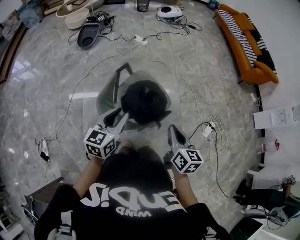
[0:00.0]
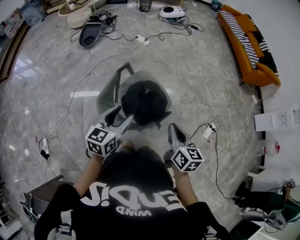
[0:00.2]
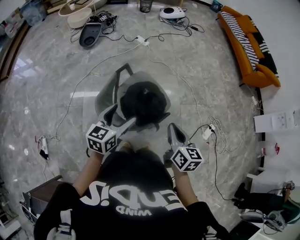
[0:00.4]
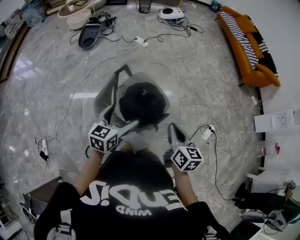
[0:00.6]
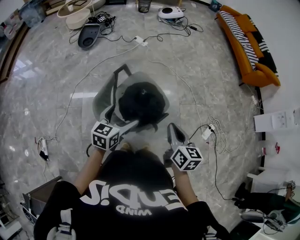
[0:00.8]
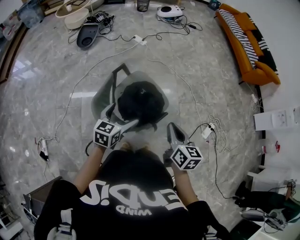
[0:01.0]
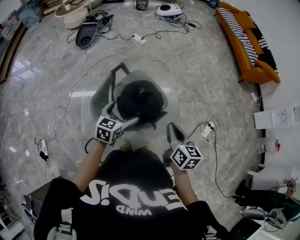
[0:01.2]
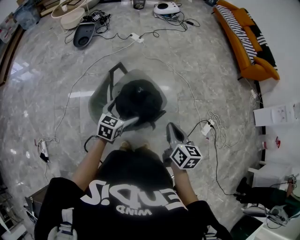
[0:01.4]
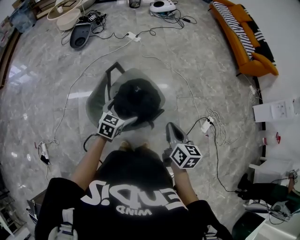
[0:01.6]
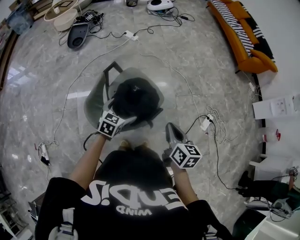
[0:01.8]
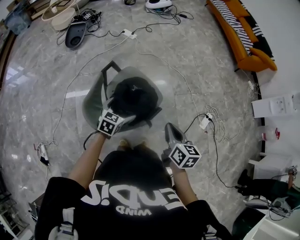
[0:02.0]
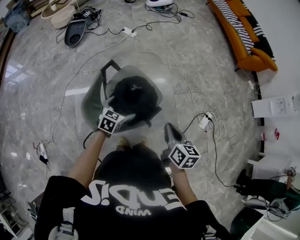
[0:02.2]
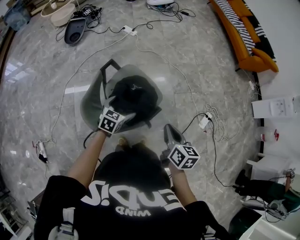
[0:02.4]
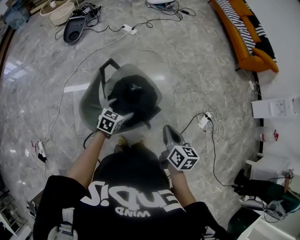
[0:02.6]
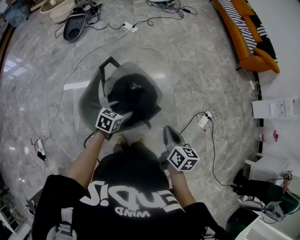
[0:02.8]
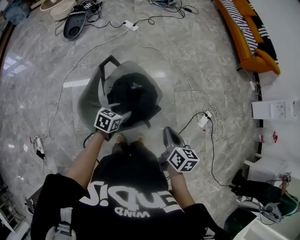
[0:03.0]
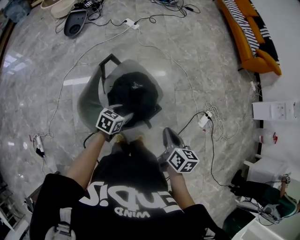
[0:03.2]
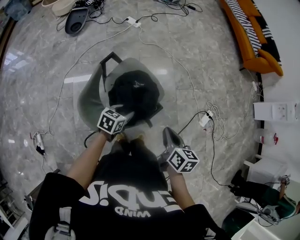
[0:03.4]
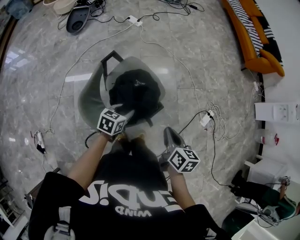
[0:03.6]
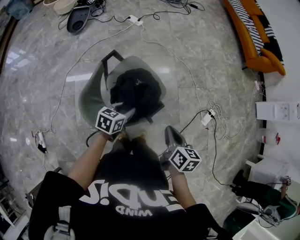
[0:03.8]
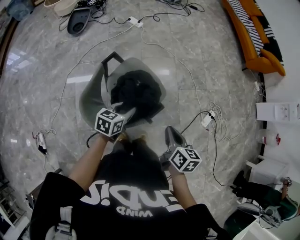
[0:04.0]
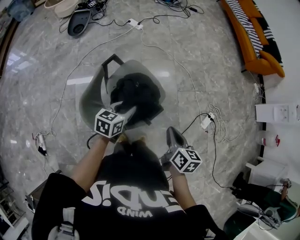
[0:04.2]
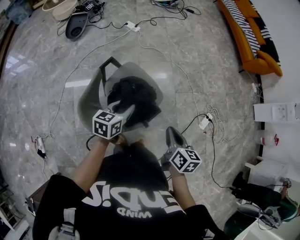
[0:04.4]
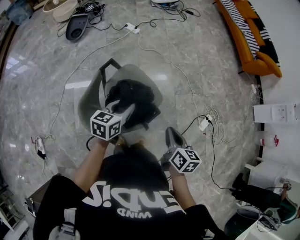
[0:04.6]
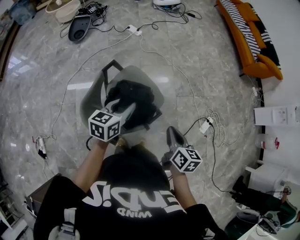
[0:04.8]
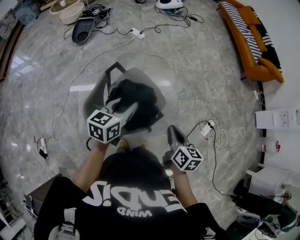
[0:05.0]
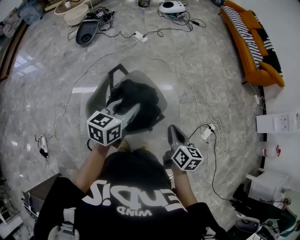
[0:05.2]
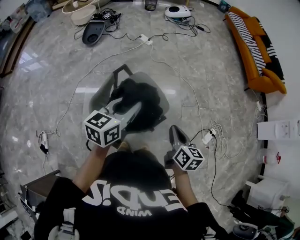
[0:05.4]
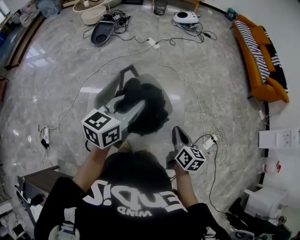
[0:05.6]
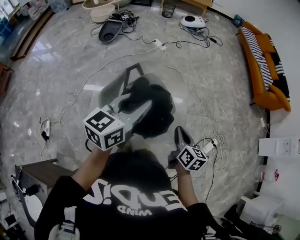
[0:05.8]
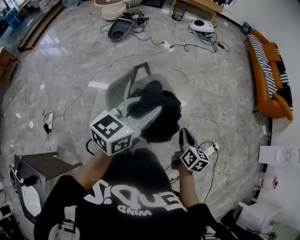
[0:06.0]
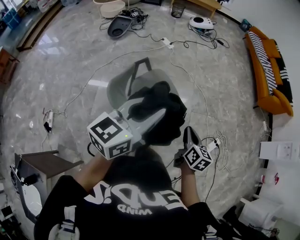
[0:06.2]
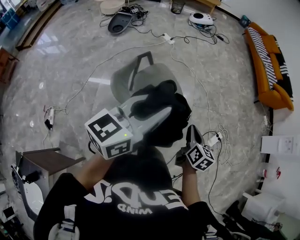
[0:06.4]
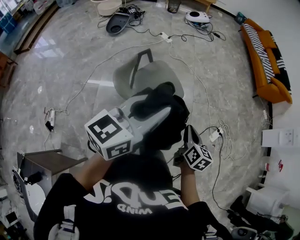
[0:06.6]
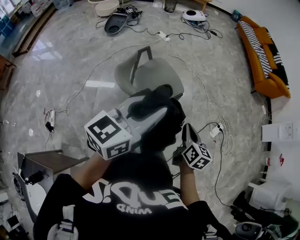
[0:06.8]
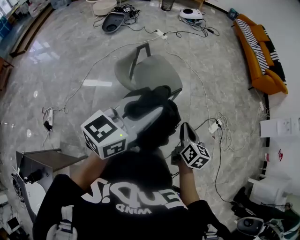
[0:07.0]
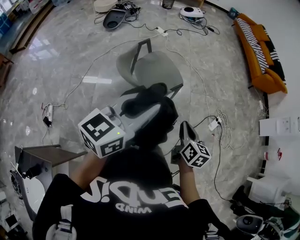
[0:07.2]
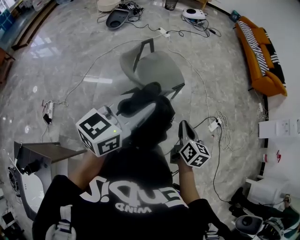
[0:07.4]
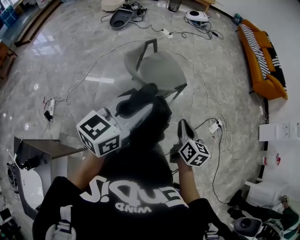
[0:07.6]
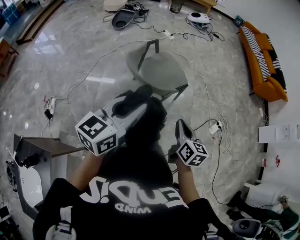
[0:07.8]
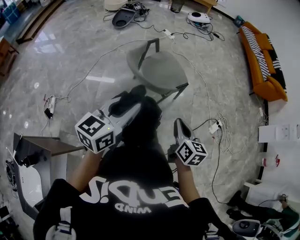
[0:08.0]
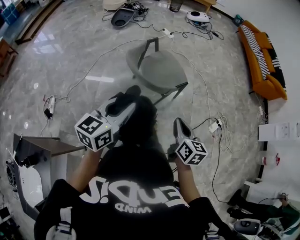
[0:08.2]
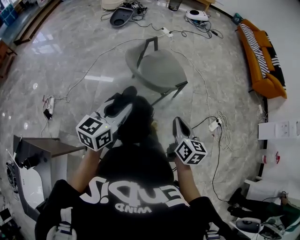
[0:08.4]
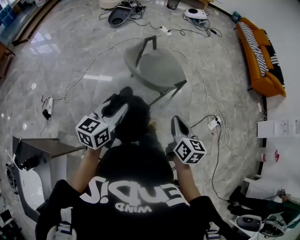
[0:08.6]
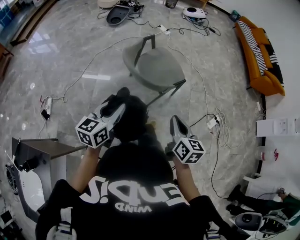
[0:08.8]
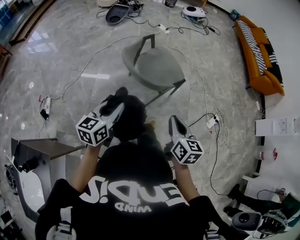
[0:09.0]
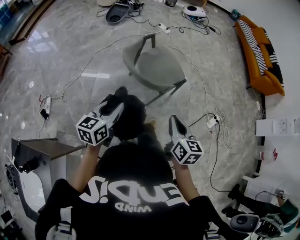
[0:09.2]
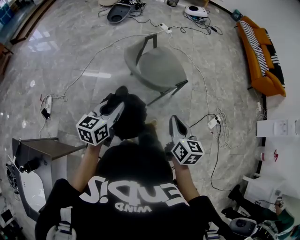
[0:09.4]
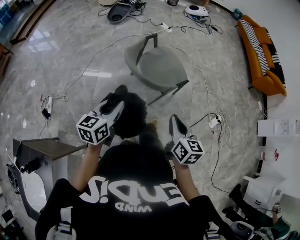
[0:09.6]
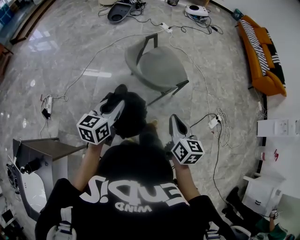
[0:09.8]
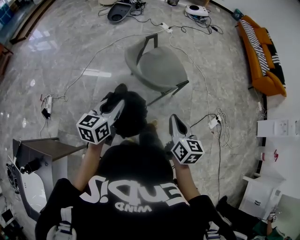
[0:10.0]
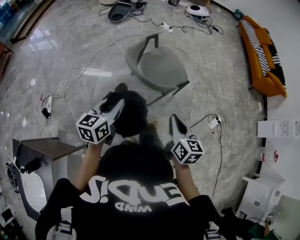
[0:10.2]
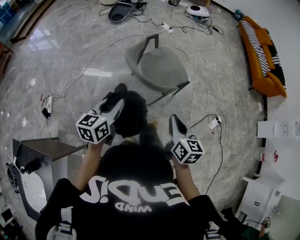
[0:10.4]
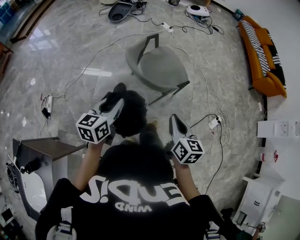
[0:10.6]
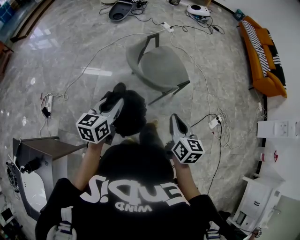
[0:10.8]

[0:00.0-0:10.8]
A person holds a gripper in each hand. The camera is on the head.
0.0 to 1.6 s: The left gripper goes some 15 cm downward, forward and to the right, rotates approximately 20 degrees, and opens. Meanwhile the right gripper travels to the right by about 5 cm.
1.6 to 3.0 s: The grippers both shift downward by roughly 5 cm. The left gripper closes up.
3.0 to 4.6 s: The left gripper shifts roughly 10 cm upward.
4.6 to 6.2 s: The left gripper goes roughly 30 cm upward and backward, and rotates about 30 degrees. Meanwhile the right gripper moves backward, about 10 cm.
6.2 to 7.8 s: The two grippers go roughly 30 cm backward.
7.8 to 9.2 s: The left gripper heads downward and to the left, covering roughly 15 cm.
9.2 to 10.8 s: The grippers stay close to where they were, moving slightly.

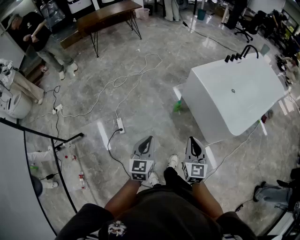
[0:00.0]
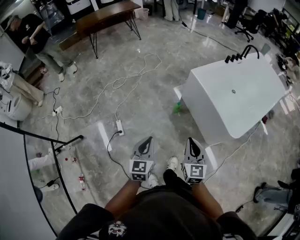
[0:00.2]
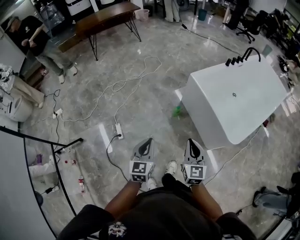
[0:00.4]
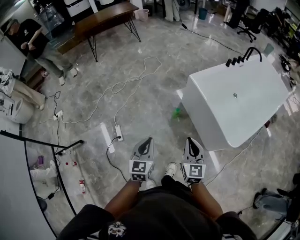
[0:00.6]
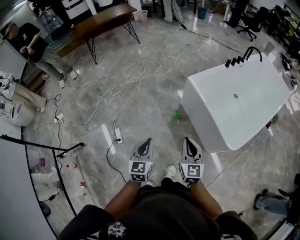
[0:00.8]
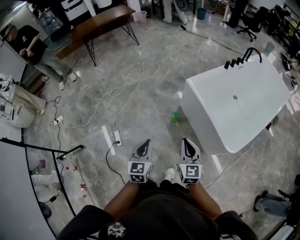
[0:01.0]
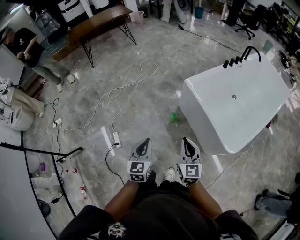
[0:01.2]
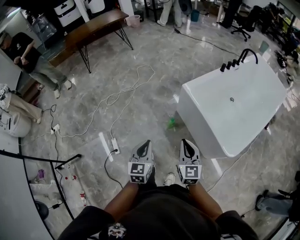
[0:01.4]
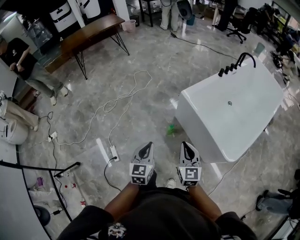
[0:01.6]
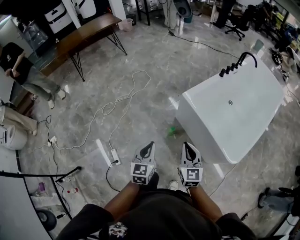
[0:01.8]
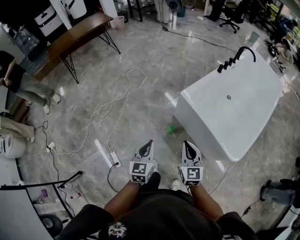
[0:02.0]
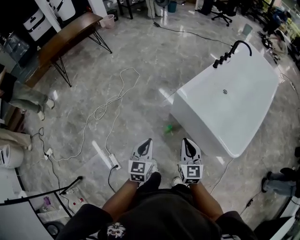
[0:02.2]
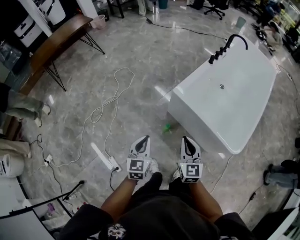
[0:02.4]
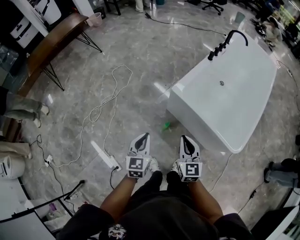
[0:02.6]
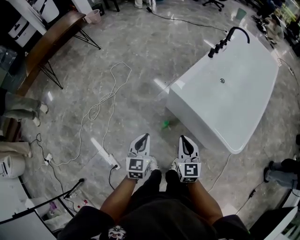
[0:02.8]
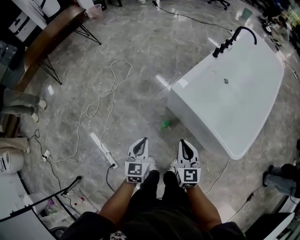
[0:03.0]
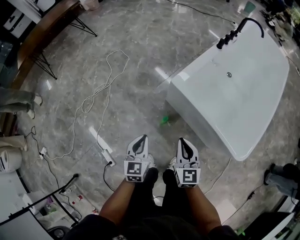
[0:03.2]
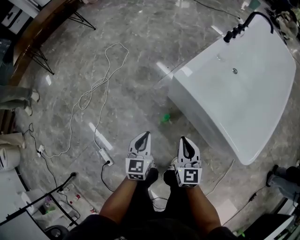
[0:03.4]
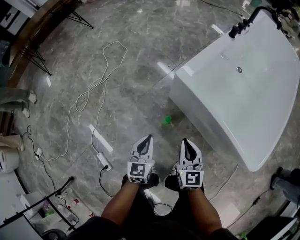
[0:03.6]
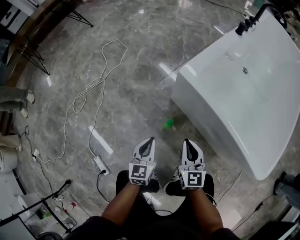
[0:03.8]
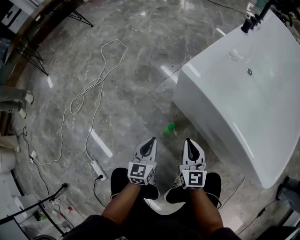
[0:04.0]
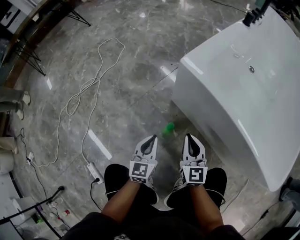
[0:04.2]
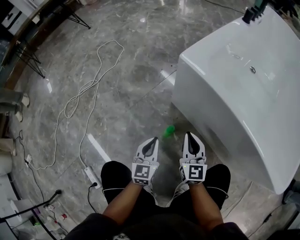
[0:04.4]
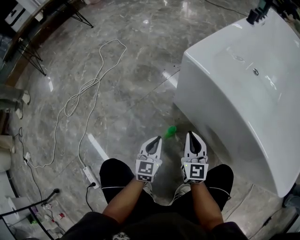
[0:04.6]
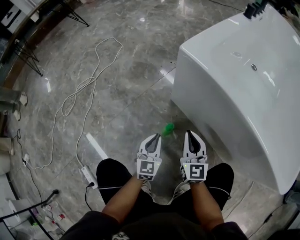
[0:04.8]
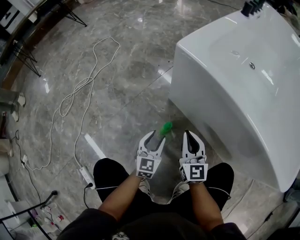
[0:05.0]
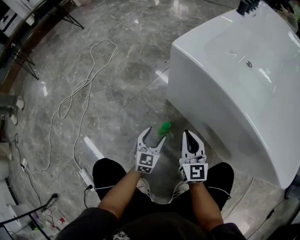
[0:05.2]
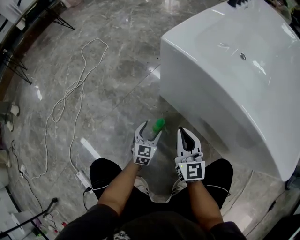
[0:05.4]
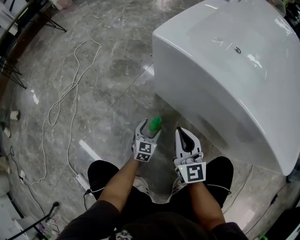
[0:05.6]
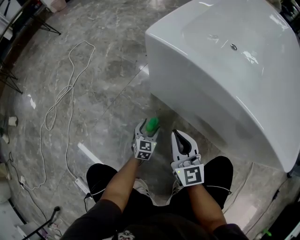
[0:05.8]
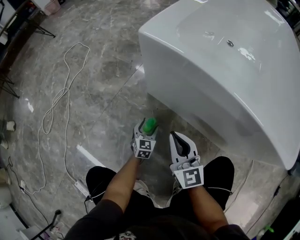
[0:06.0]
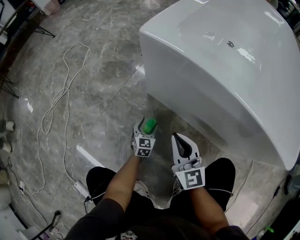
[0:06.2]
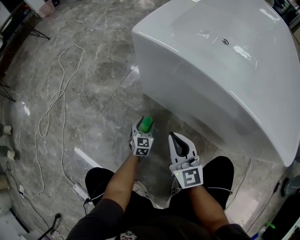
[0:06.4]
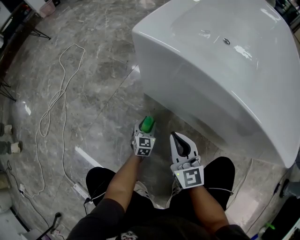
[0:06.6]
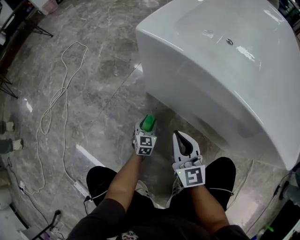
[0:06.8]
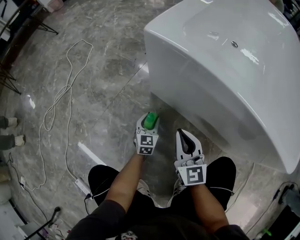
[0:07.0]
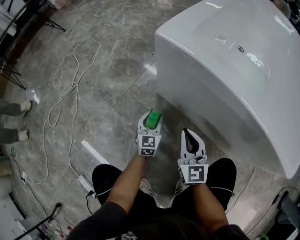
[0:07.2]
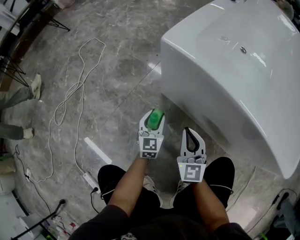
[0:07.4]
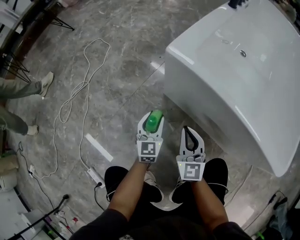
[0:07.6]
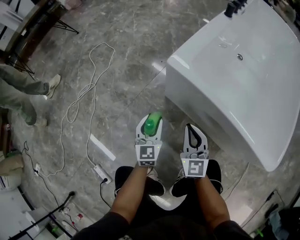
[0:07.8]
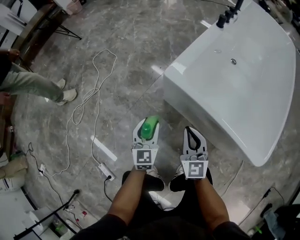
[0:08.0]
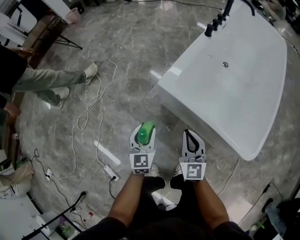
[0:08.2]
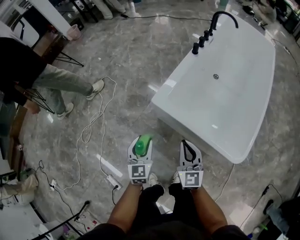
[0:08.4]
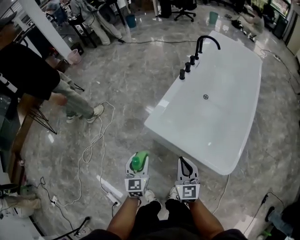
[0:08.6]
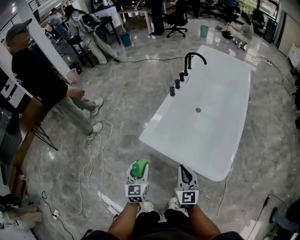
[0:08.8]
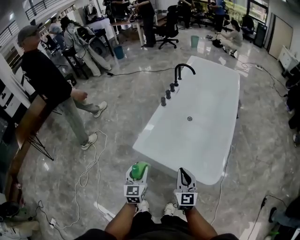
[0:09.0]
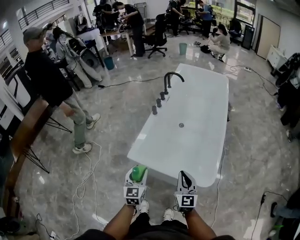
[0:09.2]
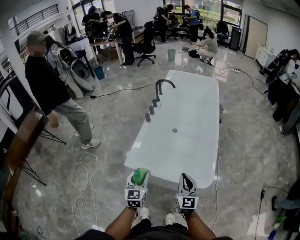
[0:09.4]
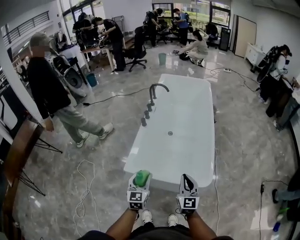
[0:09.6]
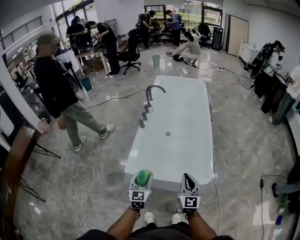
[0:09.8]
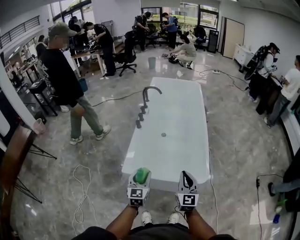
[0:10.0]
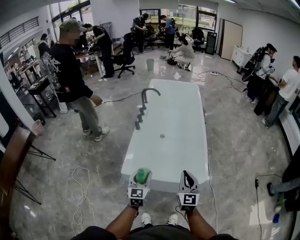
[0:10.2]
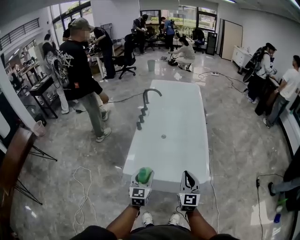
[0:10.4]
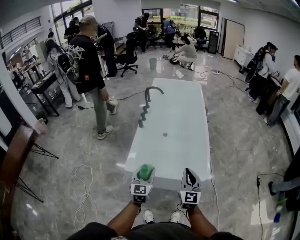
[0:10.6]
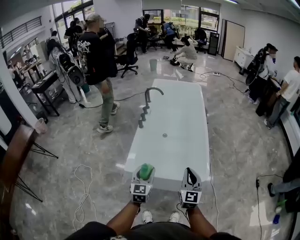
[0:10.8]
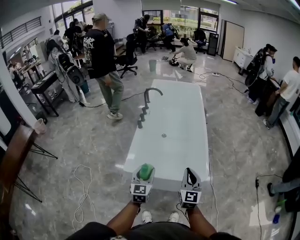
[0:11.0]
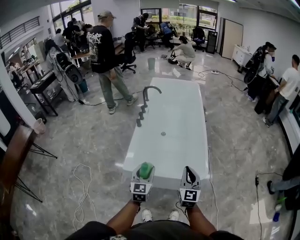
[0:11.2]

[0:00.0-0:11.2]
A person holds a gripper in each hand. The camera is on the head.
0.0 to 1.6 s: The grippers both shift forward by roughly 25 cm.
1.6 to 3.2 s: Both grippers travel together forward and downward, roughly 25 cm.
3.2 to 4.8 s: The grippers both shift downward by approximately 40 cm.
4.8 to 6.4 s: The left gripper travels downward and forward by roughly 20 cm, and opens up.
6.4 to 8.0 s: The left gripper travels upward by about 50 cm. The right gripper travels upward by some 25 cm.
8.0 to 9.6 s: Both grippers travel together upward, roughly 40 cm. The left gripper changes its angle by roughly 30 degrees. Meanwhile the right gripper rotates approximately 40 degrees.
9.6 to 11.2 s: The right gripper heads upward, covering some 5 cm.

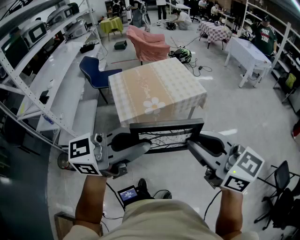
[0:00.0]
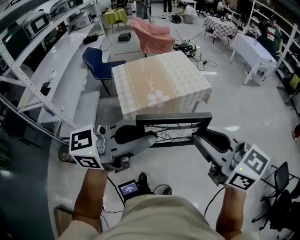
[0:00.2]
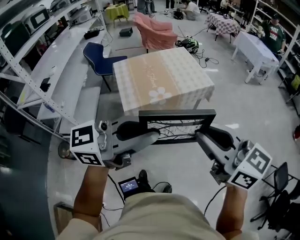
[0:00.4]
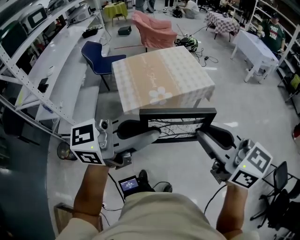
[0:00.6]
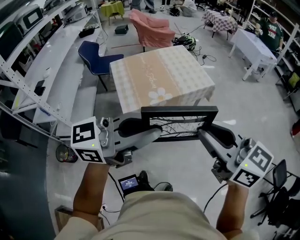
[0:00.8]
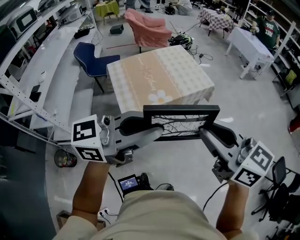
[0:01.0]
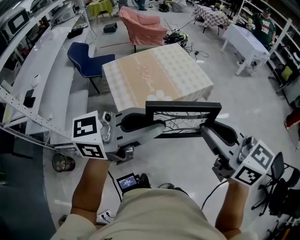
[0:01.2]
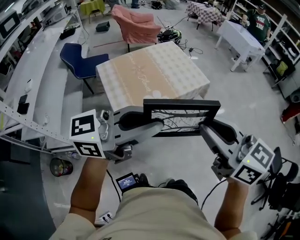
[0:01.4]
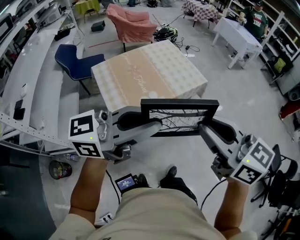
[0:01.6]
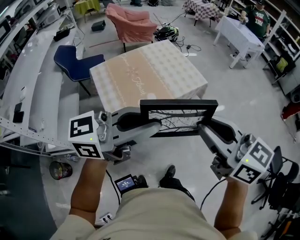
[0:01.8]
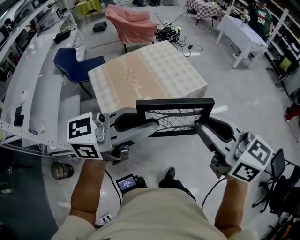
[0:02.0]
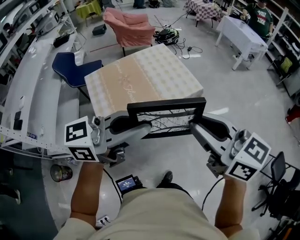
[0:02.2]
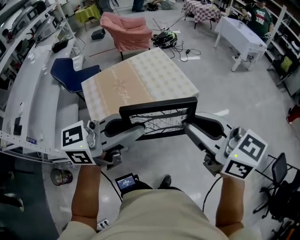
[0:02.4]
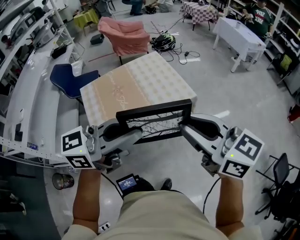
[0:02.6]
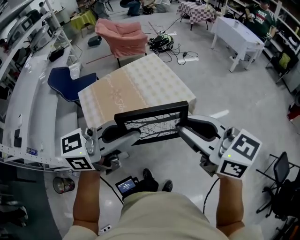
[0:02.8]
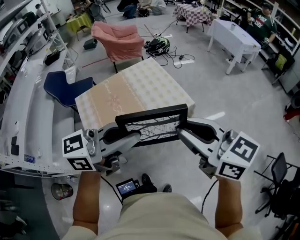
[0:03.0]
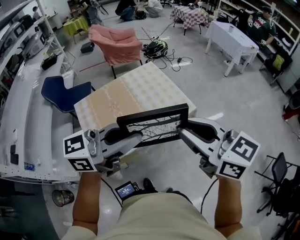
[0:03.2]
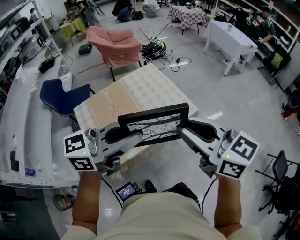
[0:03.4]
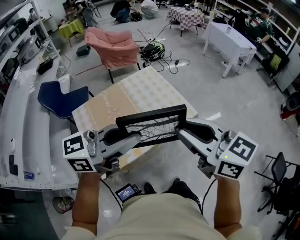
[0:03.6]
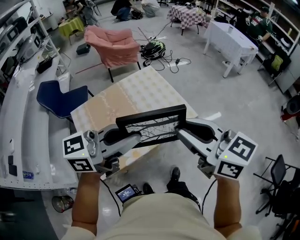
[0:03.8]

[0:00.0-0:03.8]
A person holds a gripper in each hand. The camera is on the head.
0.0 to 1.2 s: Both grippers travel together forward and to the left, some 20 cm.
1.2 to 2.6 s: Both grippers travel together forward and to the right, roughly 25 cm.
2.6 to 3.8 s: Both grippers travel together forward and to the left, approximately 20 cm.
